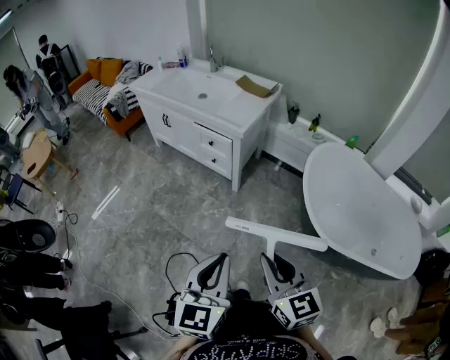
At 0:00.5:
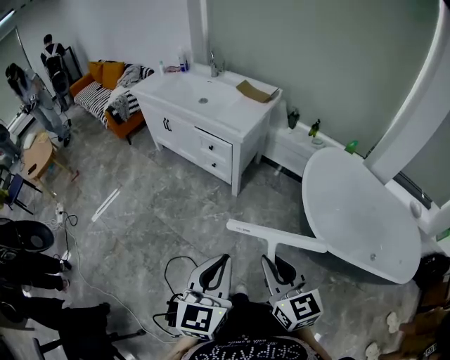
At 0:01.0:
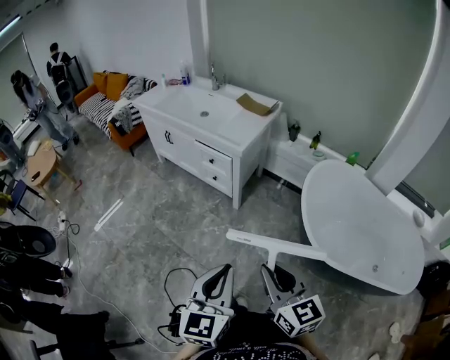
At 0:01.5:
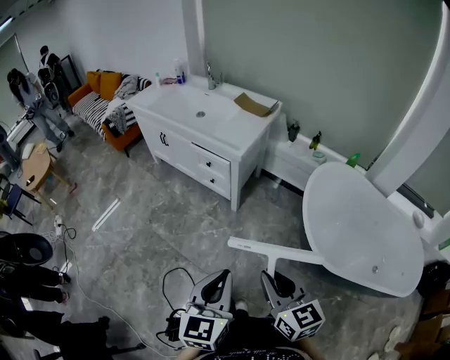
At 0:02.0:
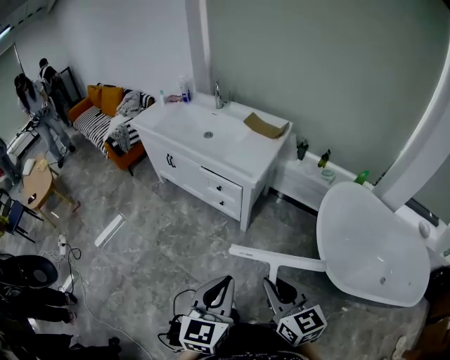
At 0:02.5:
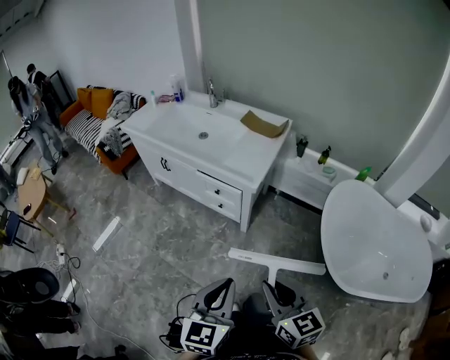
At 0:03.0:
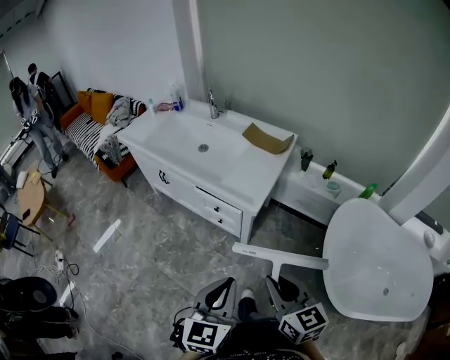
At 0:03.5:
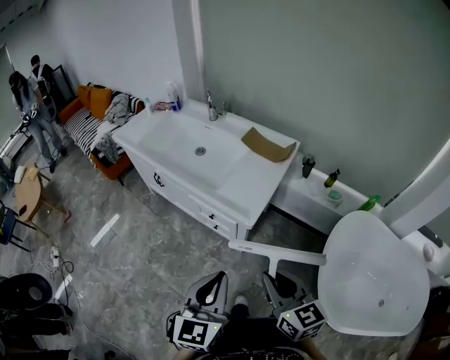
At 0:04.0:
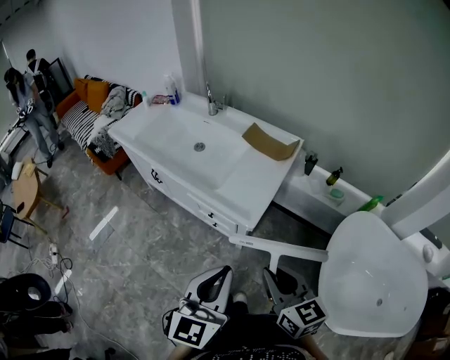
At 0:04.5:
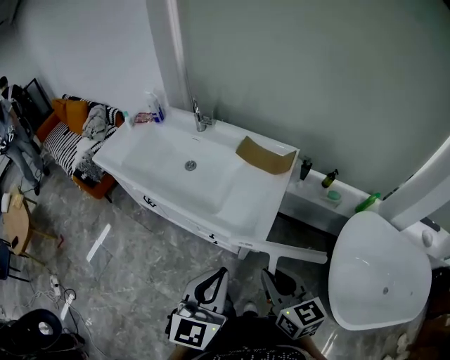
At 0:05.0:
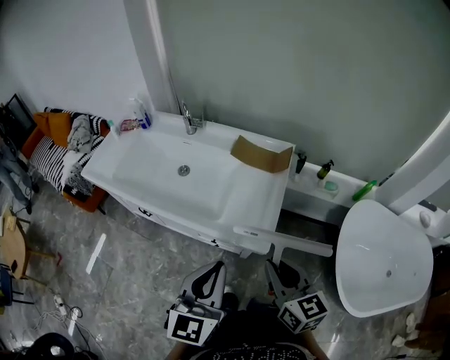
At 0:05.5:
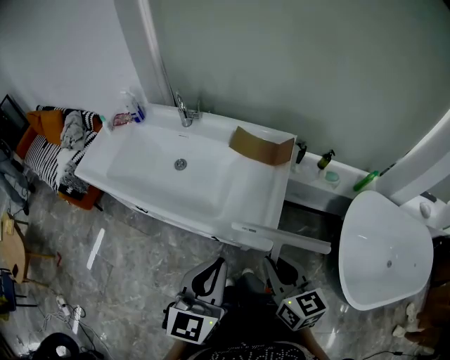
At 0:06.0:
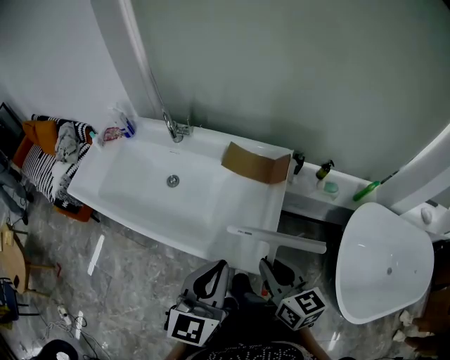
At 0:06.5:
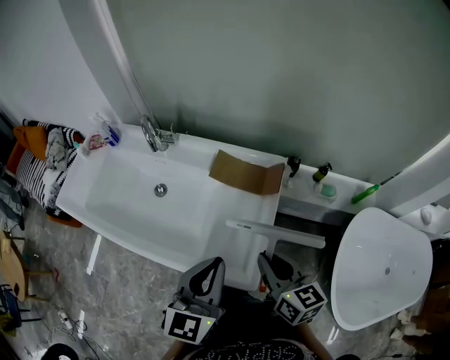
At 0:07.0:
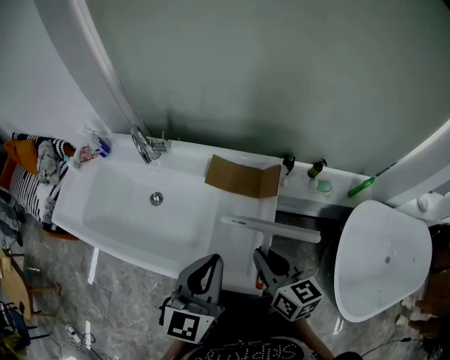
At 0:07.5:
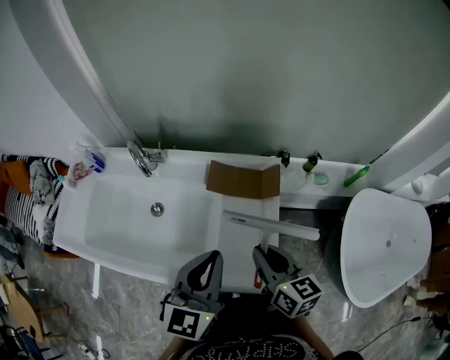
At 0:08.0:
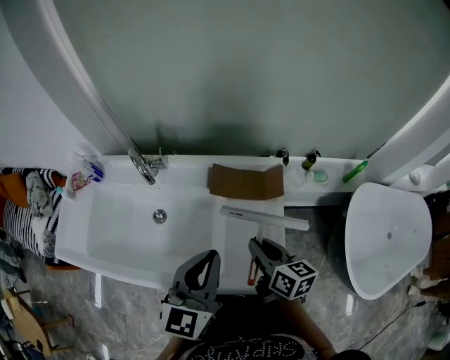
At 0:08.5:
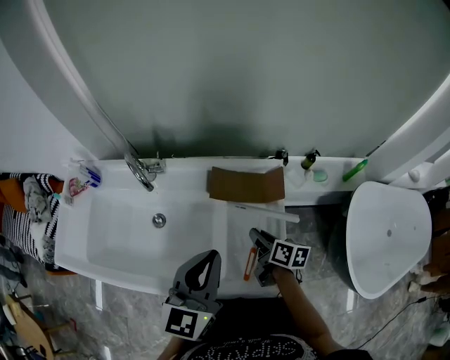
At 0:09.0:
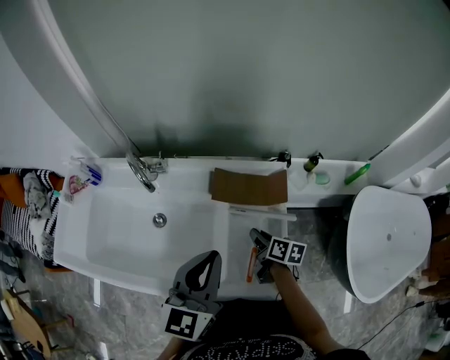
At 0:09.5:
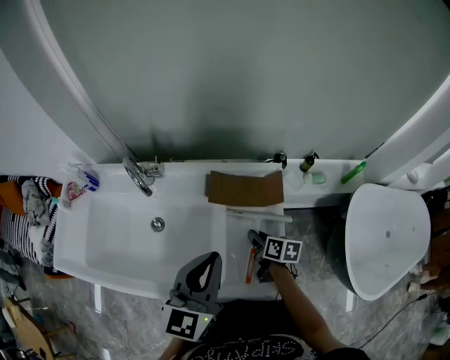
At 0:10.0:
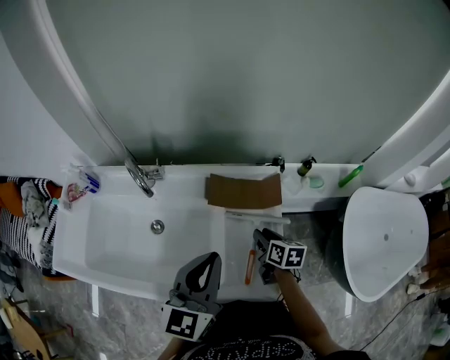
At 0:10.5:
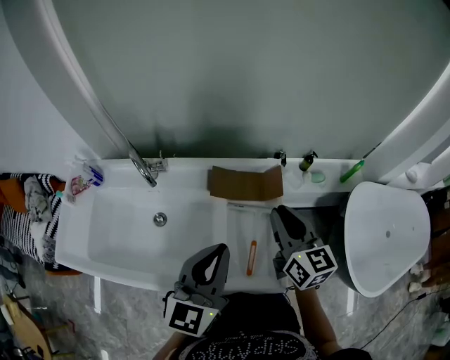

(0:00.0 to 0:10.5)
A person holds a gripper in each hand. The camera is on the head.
0:00.0 - 0:02.0: The grippers both shift forward by approximately 15 cm.
0:02.0 - 0:04.0: The grippers both shift forward by about 30 cm.
0:04.0 - 0:06.5: Both grippers move forward, roughly 30 cm. The right gripper swivels some 20 degrees.
0:06.5 - 0:08.5: The left gripper shifts some 15 cm forward and to the left. Meanwhile the right gripper heads downward, forward and to the left, covering some 20 cm, and turns by some 40 degrees.
0:08.5 - 0:10.5: The right gripper goes about 20 cm upward, and swivels about 40 degrees.

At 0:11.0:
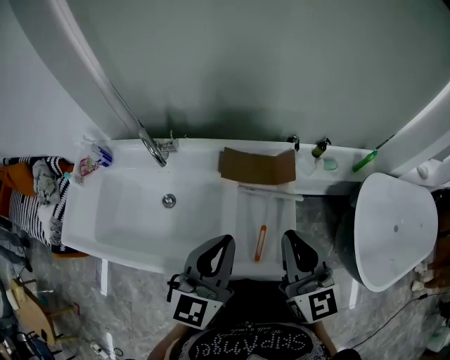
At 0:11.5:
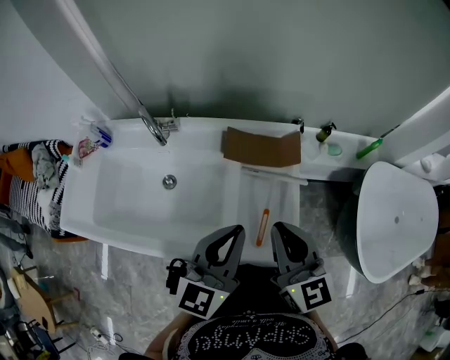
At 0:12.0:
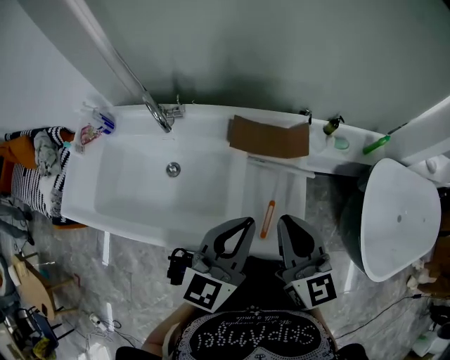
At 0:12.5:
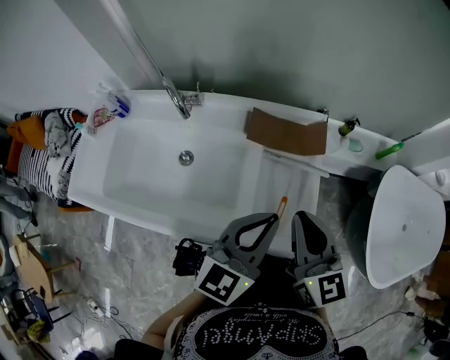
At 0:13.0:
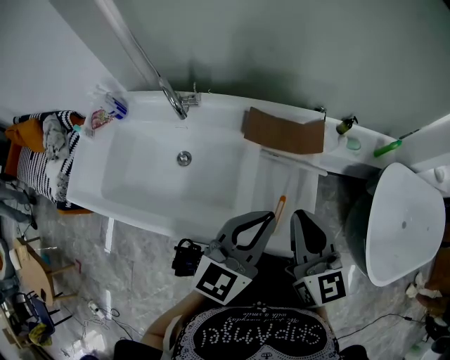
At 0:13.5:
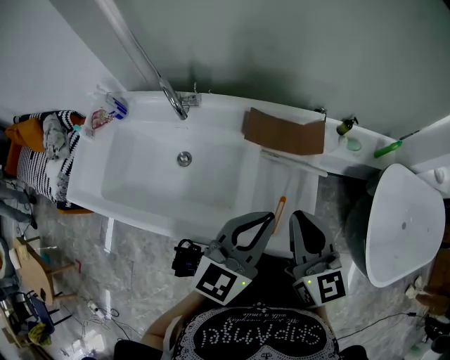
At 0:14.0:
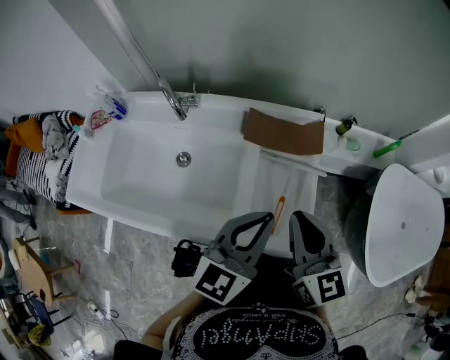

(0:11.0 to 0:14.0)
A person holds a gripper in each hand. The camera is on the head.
0:11.0 - 0:12.5: The right gripper changes place by approximately 5 cm. Meanwhile the left gripper changes place by approximately 5 cm.
0:12.5 - 0:14.0: Neither gripper changes place.

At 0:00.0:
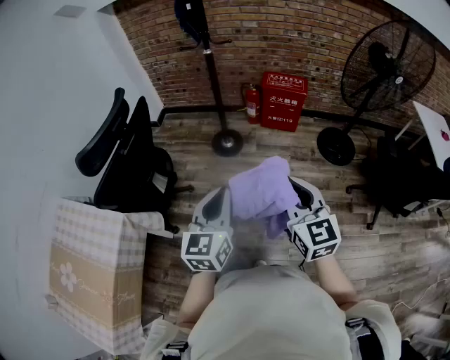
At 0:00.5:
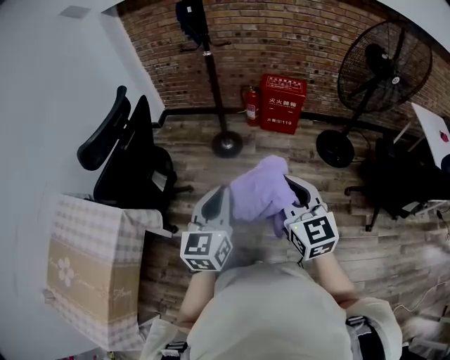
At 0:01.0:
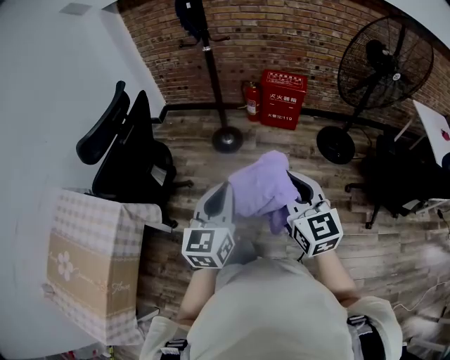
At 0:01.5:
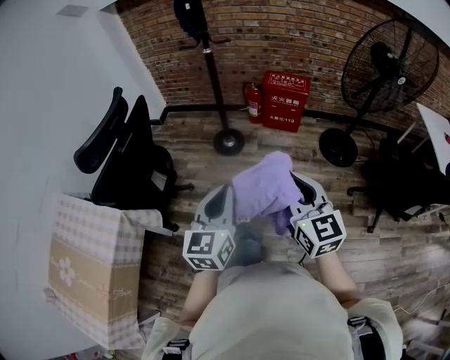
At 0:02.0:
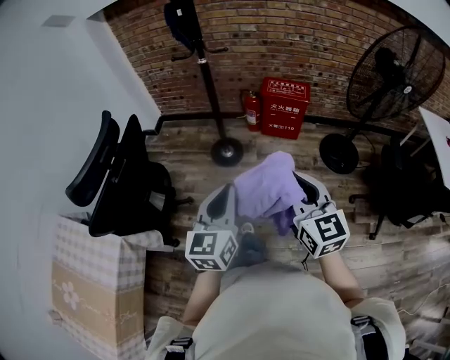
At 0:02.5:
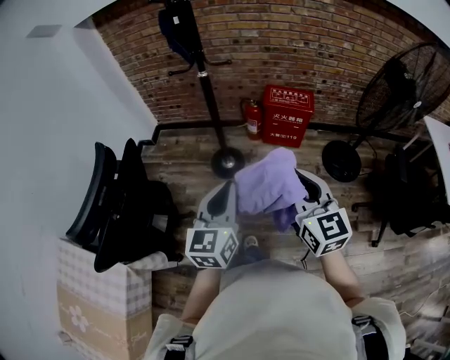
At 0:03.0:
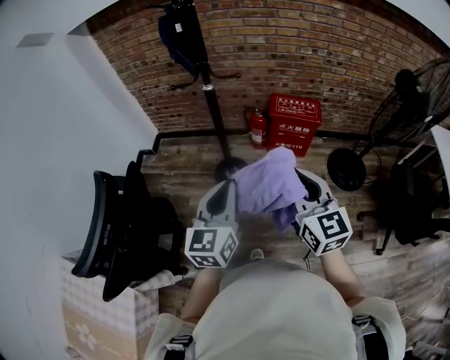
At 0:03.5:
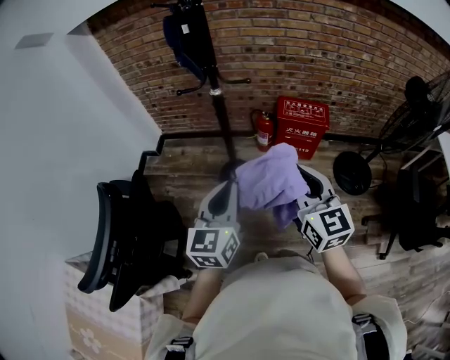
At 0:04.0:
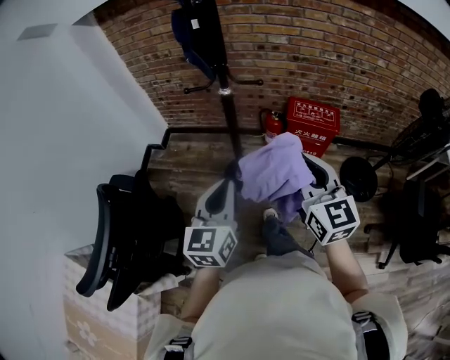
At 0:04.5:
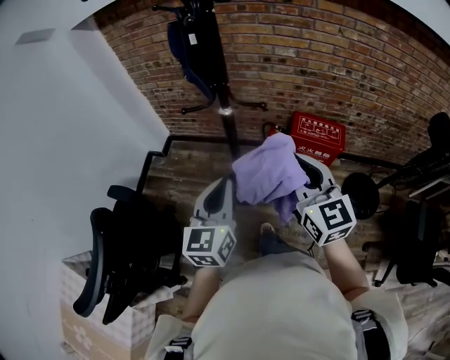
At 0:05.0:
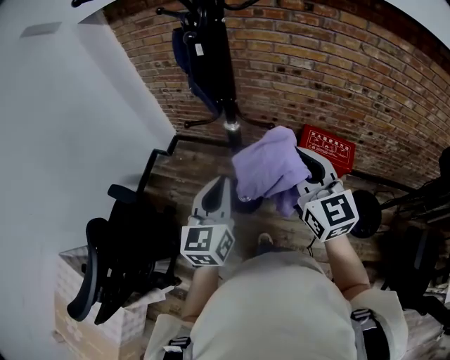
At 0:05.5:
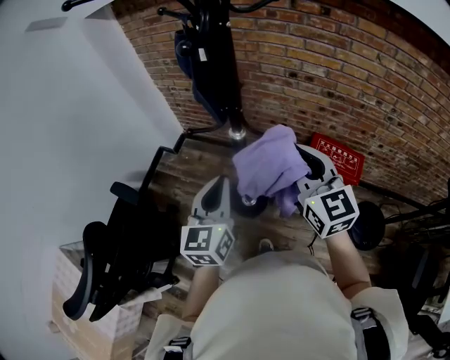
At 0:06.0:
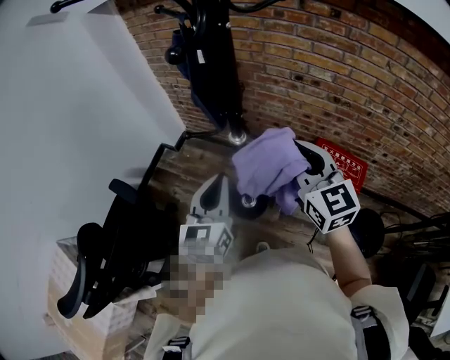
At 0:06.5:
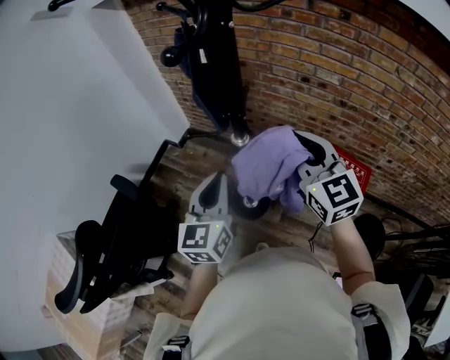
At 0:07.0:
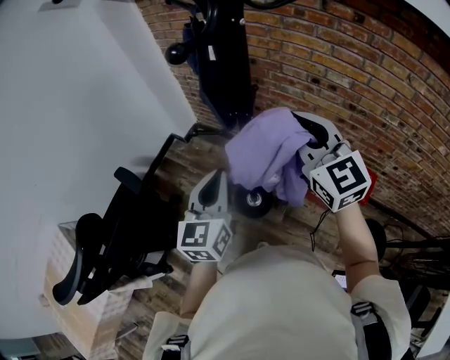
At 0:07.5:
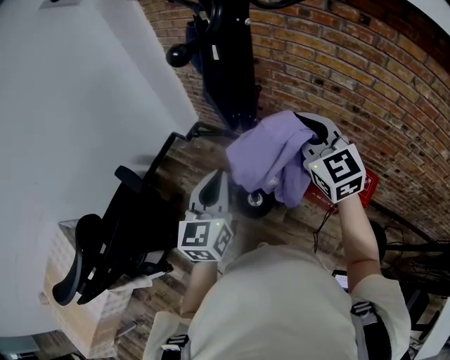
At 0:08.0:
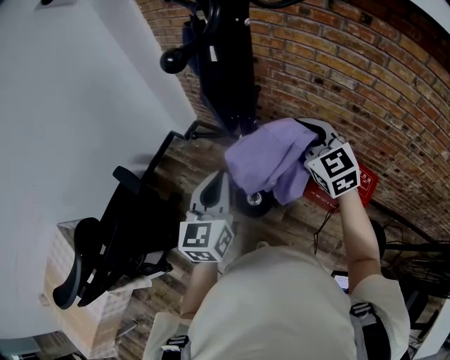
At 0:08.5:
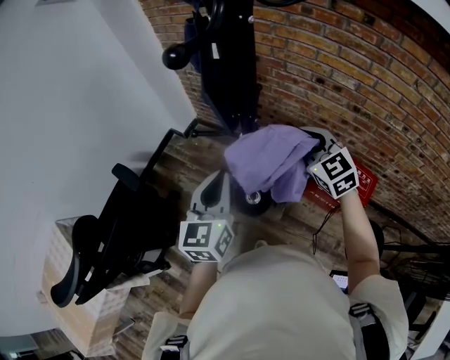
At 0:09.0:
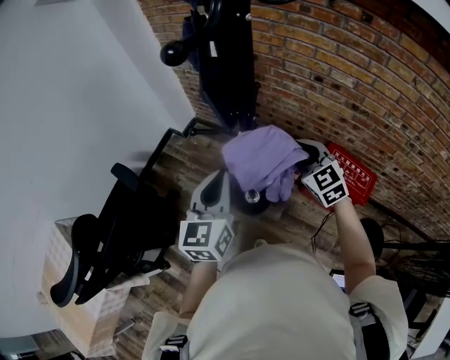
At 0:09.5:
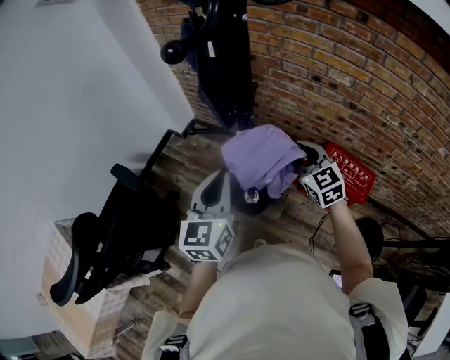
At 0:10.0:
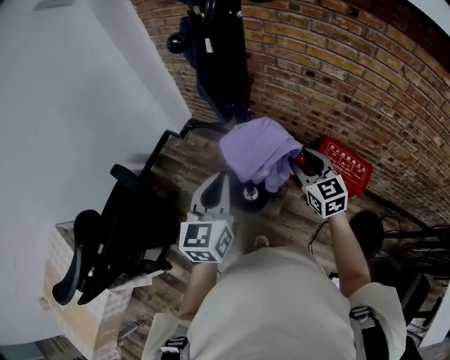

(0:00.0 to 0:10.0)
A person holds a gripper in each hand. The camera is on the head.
0:00.0 - 0:02.0: Both grippers move forward, about 10 cm.
0:02.0 - 0:04.0: Both grippers move forward, some 30 cm.
0:04.0 - 0:06.0: Both grippers travel together forward, some 25 cm.
0:06.0 - 0:08.0: The right gripper heads forward, covering approximately 10 cm, and changes its angle by about 20 degrees.
0:08.0 - 0:10.0: The right gripper moves downward and backward, about 15 cm, and opens.

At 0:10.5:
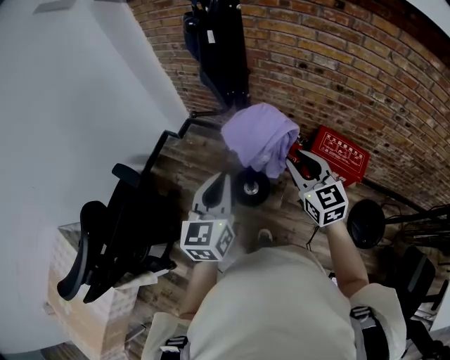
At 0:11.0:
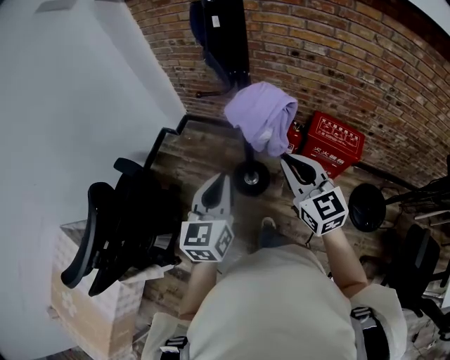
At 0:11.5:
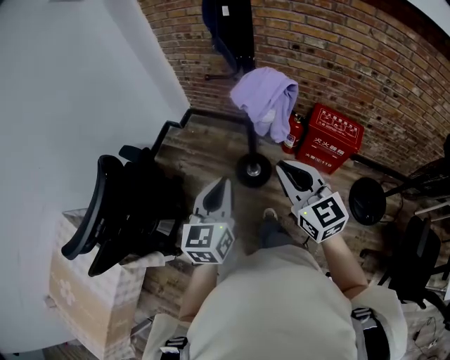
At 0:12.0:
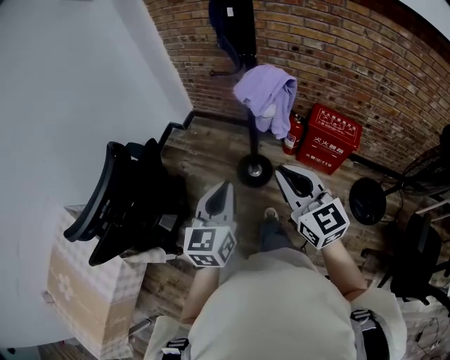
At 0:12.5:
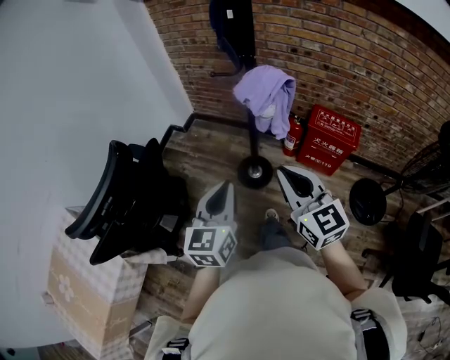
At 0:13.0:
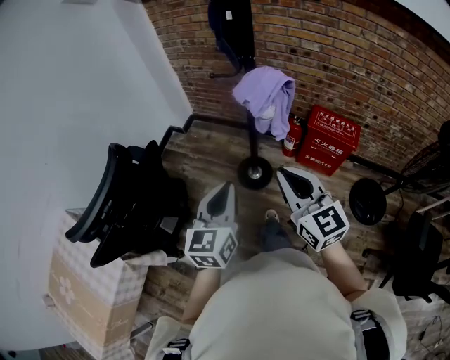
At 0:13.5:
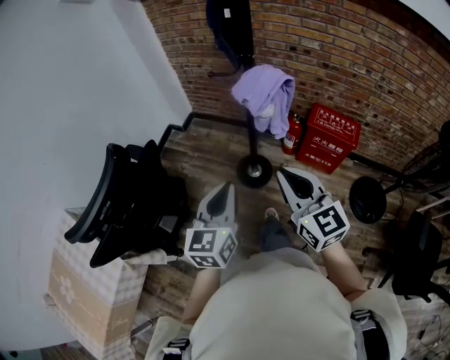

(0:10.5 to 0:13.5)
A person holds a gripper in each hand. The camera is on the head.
0:10.5 - 0:12.0: The right gripper travels backward and to the left by approximately 25 cm, and closes its fingers. Meanwhile the left gripper shifts roughly 20 cm backward.
0:12.0 - 0:13.5: Both grippers stay about where they are.
